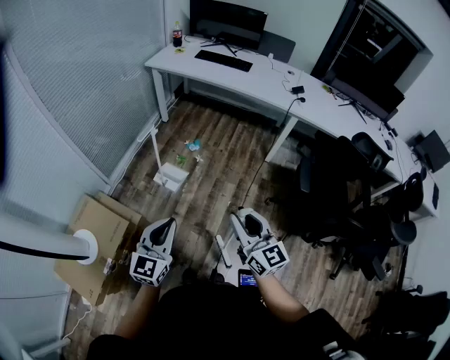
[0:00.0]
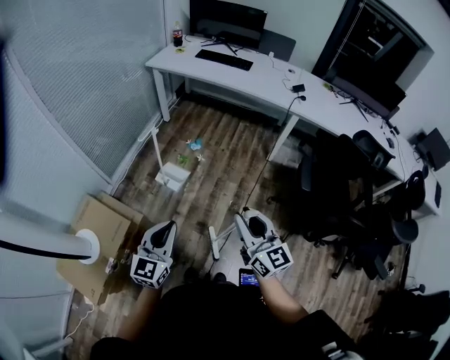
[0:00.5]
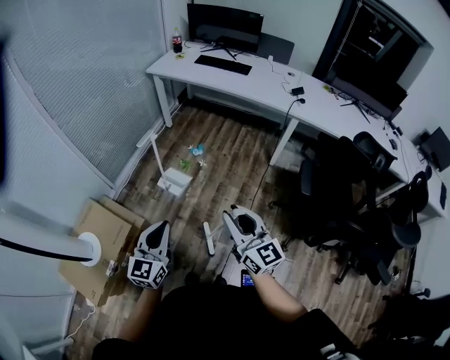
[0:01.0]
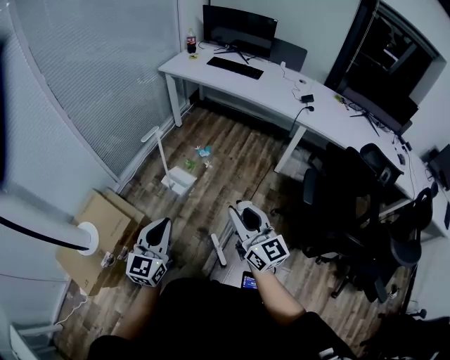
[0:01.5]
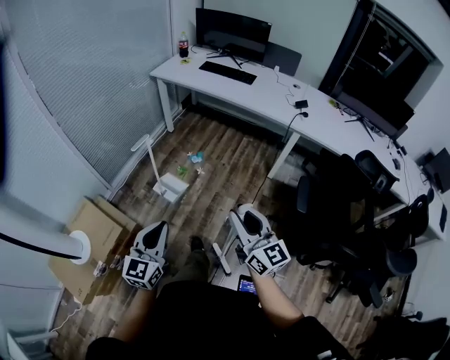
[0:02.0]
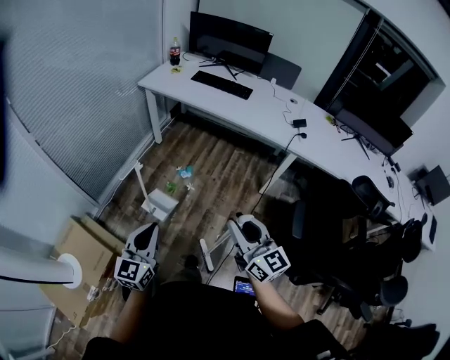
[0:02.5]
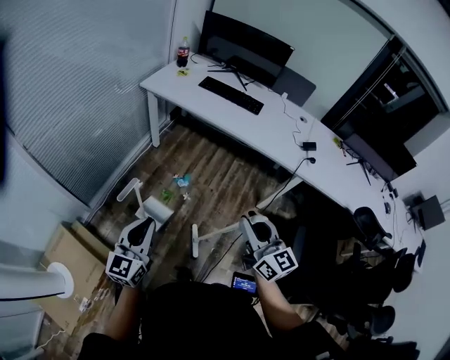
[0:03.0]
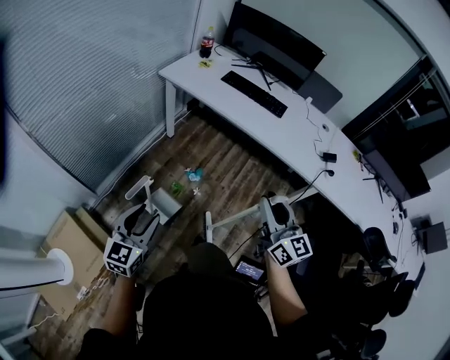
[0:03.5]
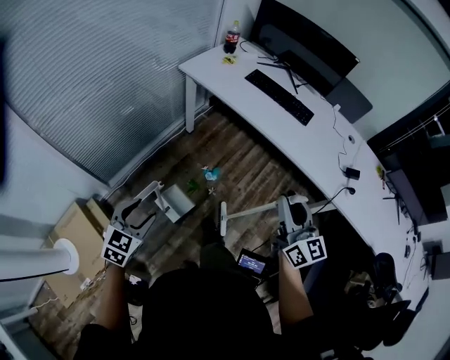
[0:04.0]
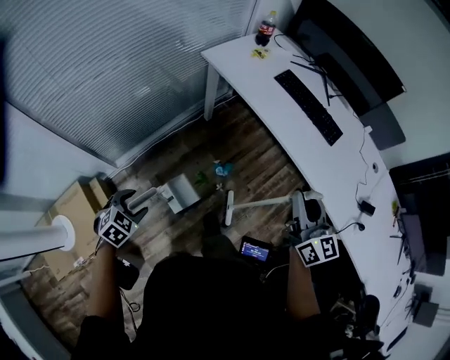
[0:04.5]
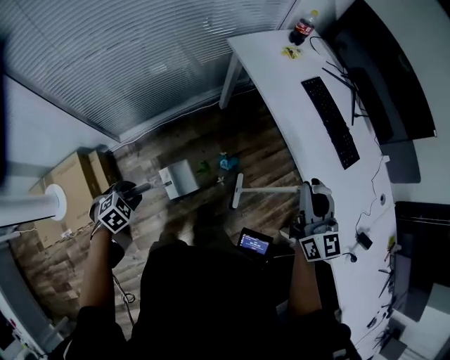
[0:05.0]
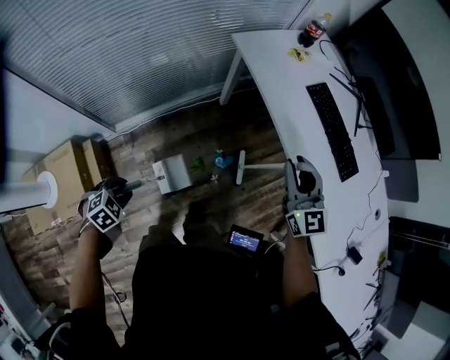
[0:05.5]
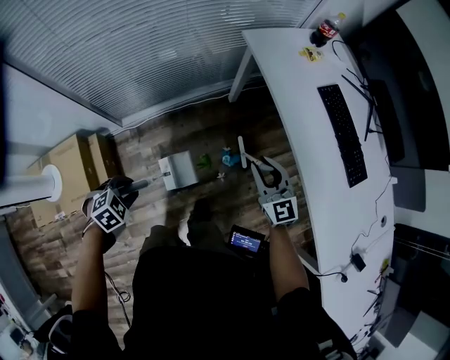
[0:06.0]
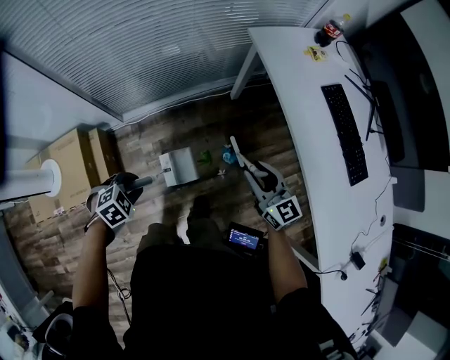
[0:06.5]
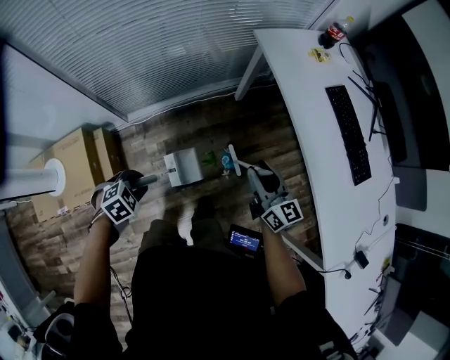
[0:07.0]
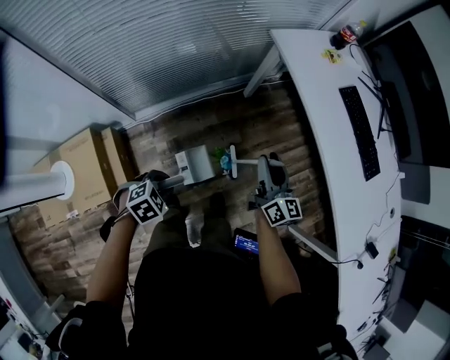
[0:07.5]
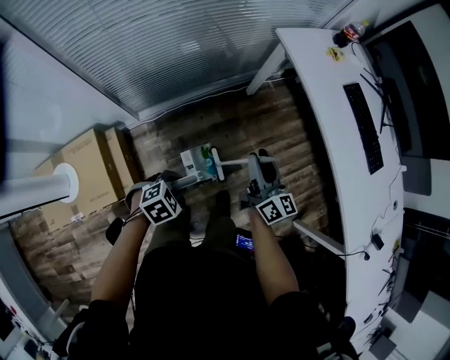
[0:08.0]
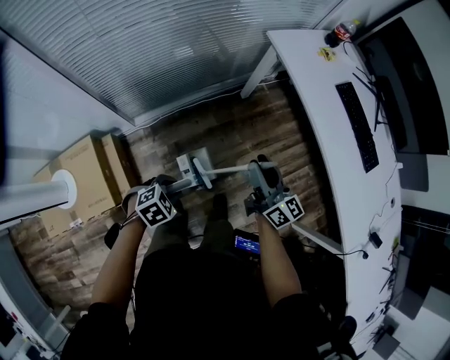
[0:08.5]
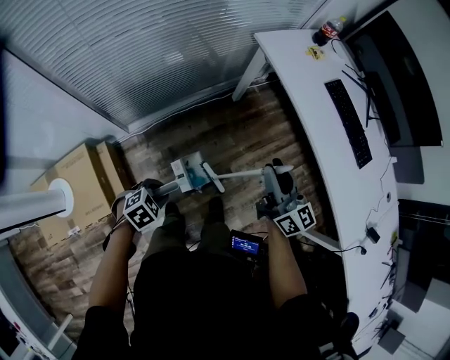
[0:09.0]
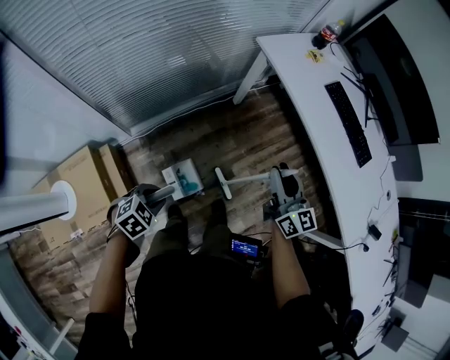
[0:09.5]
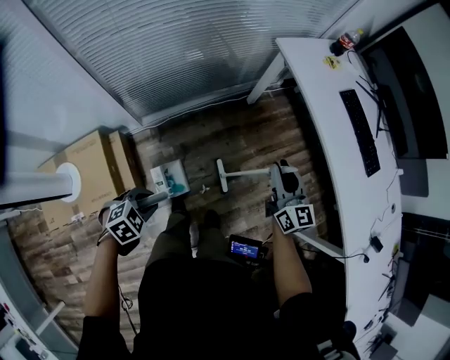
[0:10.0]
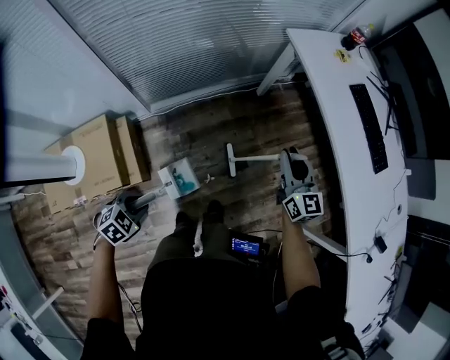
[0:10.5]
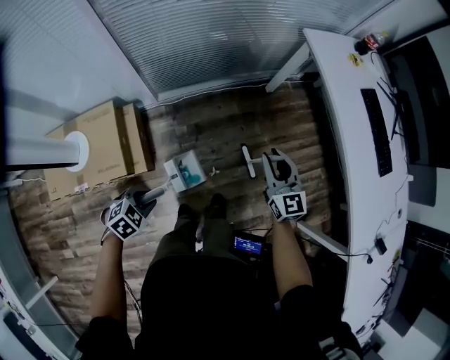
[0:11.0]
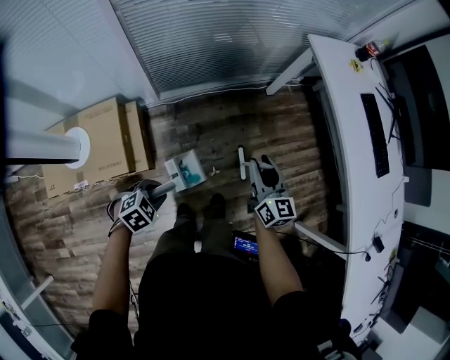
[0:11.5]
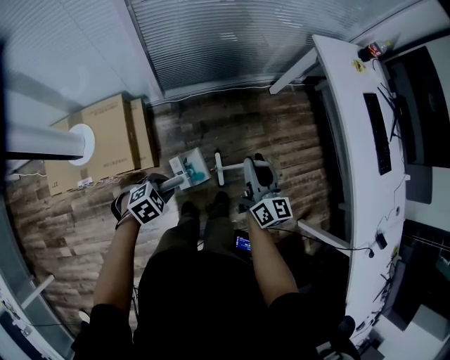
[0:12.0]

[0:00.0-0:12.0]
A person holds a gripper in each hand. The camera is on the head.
0:00.0 to 0:02.0: The right gripper heads to the right and forward, covering roughly 10 cm. The left gripper shifts some 5 cm to the right.
0:02.0 to 0:04.0: Both grippers are carried forward, about 40 cm. The left gripper turns by some 30 degrees, and opens up.
0:04.0 to 0:06.0: The left gripper travels downward and forward by about 20 cm, tilts its fingers roughly 40 degrees downward, and closes up. Meanwhile the right gripper is displaced forward and downward by approximately 40 cm, and turns by approximately 50 degrees.
0:06.0 to 0:08.0: The right gripper shifts approximately 15 cm to the left, and rolls clockwise, seen from behind, by about 40 degrees.
0:08.0 to 0:10.0: The right gripper goes roughly 5 cm to the right, and turns by some 20 degrees. Meanwhile the left gripper shifts some 10 cm backward and to the left.
0:10.0 to 0:12.0: The left gripper is displaced backward by some 10 cm; the right gripper travels to the left and backward by approximately 20 cm.

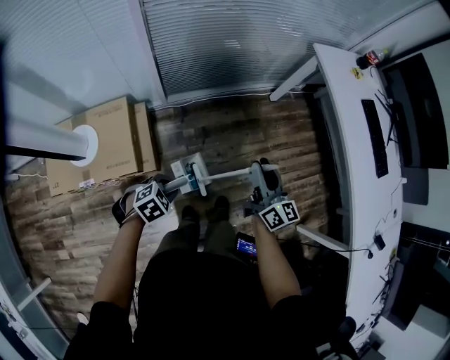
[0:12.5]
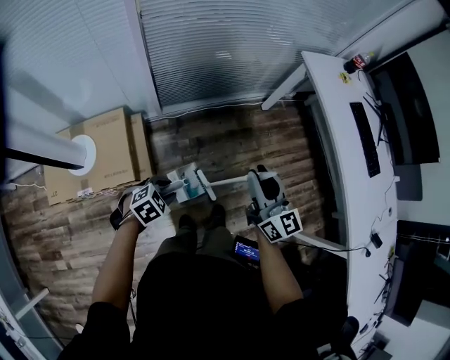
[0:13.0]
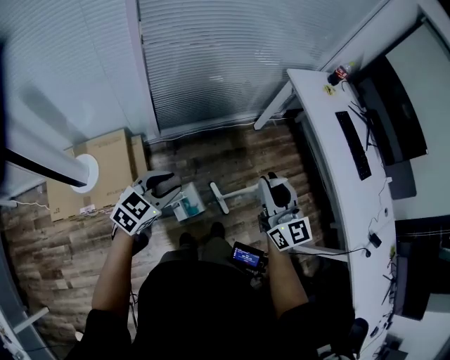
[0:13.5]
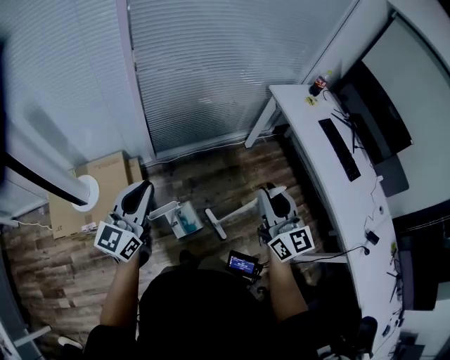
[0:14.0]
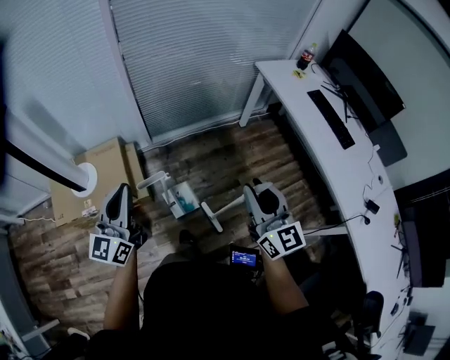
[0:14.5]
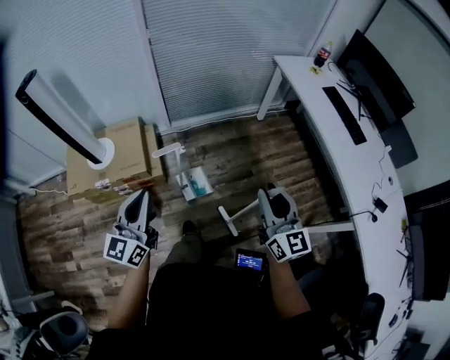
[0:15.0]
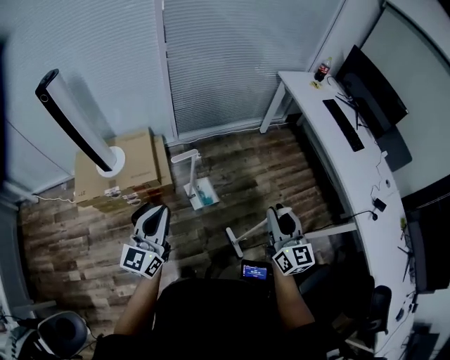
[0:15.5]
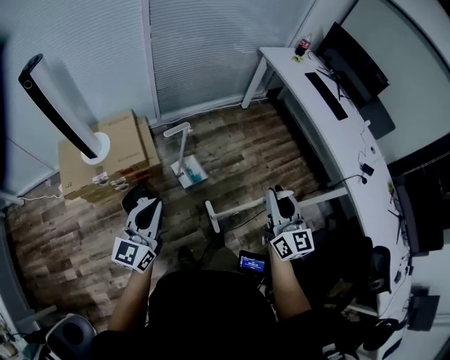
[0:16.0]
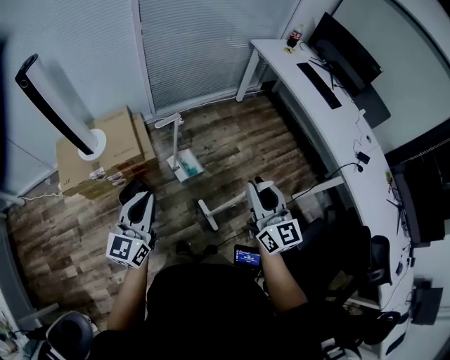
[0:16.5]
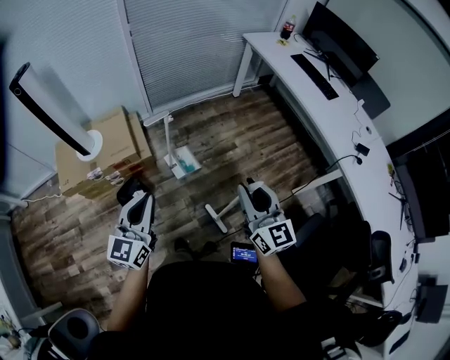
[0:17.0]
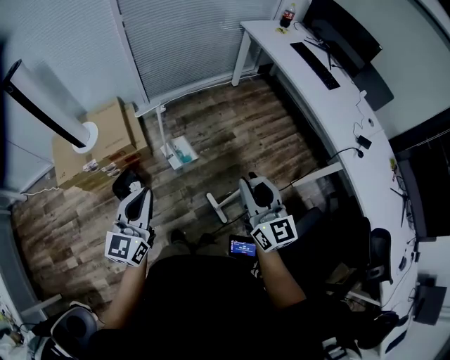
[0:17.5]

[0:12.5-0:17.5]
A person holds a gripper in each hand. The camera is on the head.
0:12.5 to 0:15.0: The right gripper heads backward, upward and to the right, covering about 35 cm, and turns by roughly 20 degrees. The left gripper is displaced upward and backward by roughly 40 cm, and points its fingers some 70 degrees further upward.
0:15.0 to 0:17.5: The two grippers go approximately 15 cm backward.

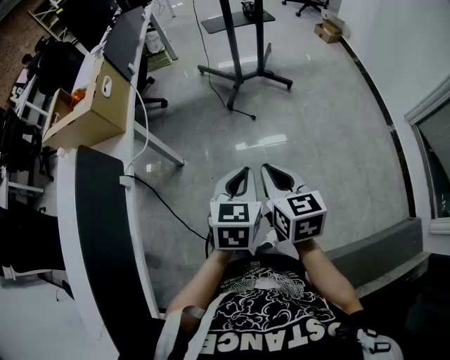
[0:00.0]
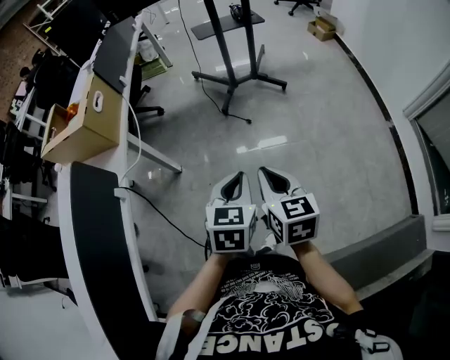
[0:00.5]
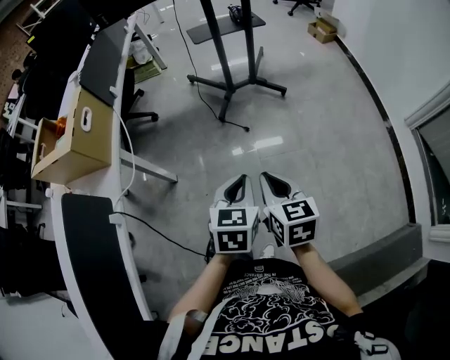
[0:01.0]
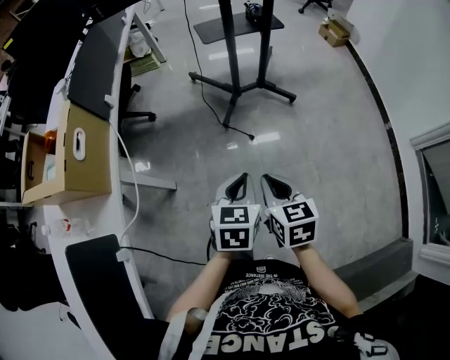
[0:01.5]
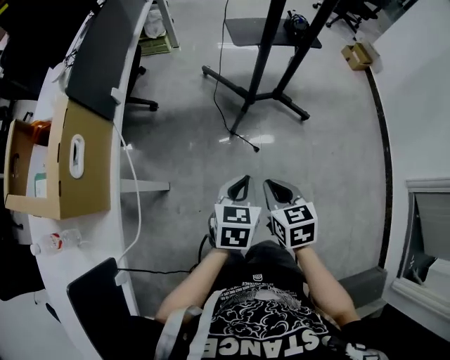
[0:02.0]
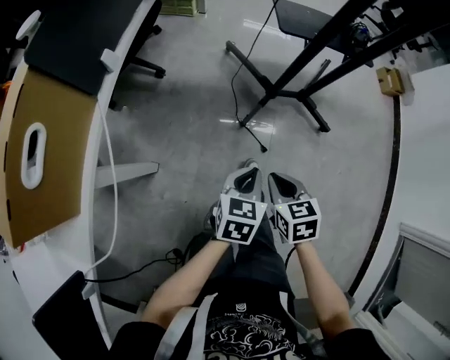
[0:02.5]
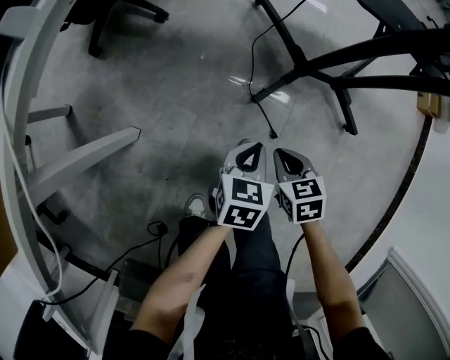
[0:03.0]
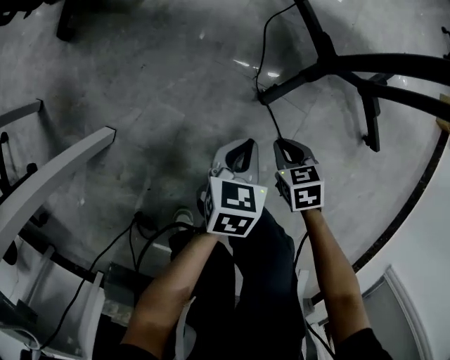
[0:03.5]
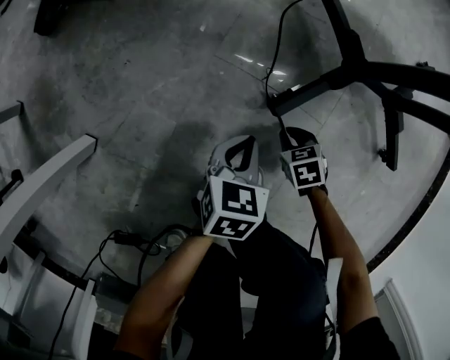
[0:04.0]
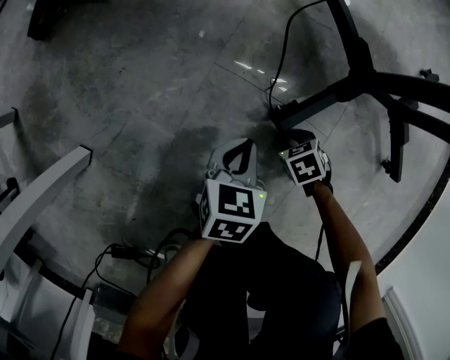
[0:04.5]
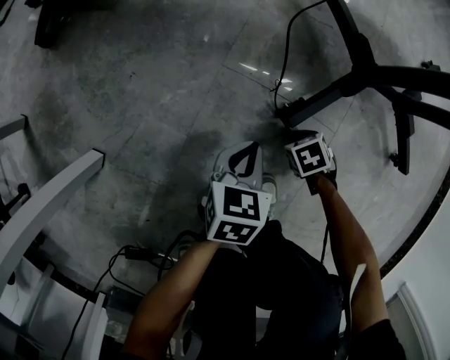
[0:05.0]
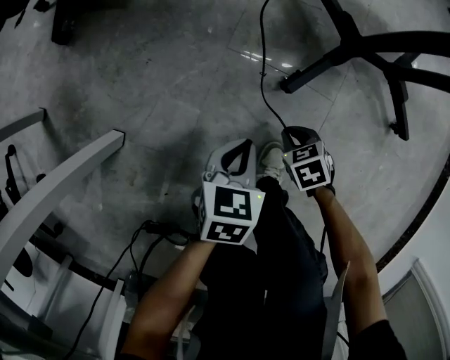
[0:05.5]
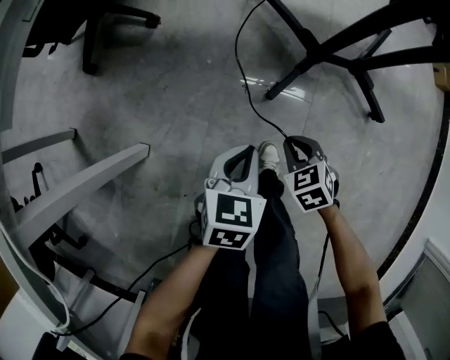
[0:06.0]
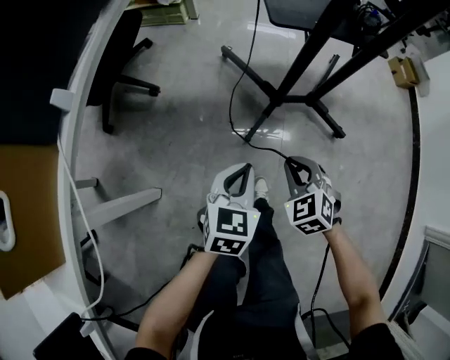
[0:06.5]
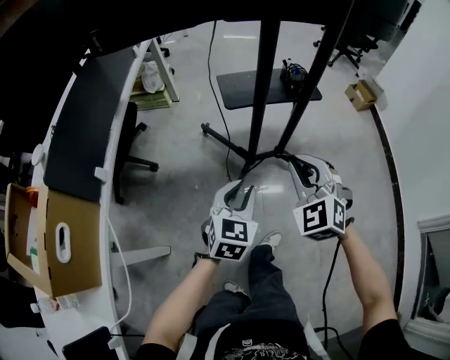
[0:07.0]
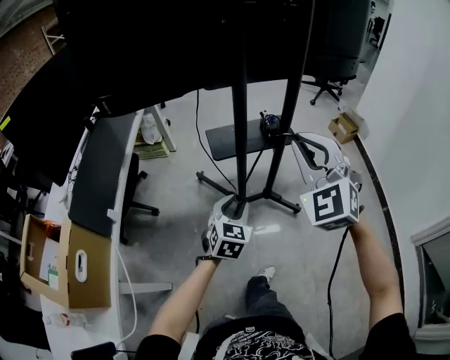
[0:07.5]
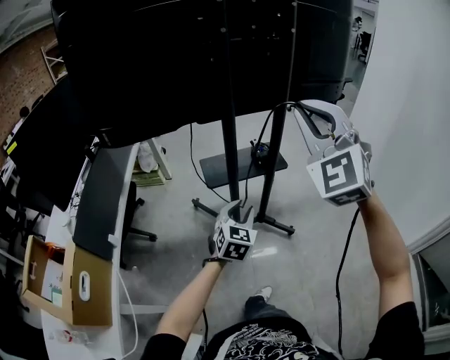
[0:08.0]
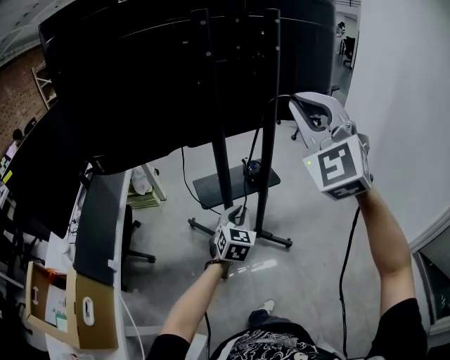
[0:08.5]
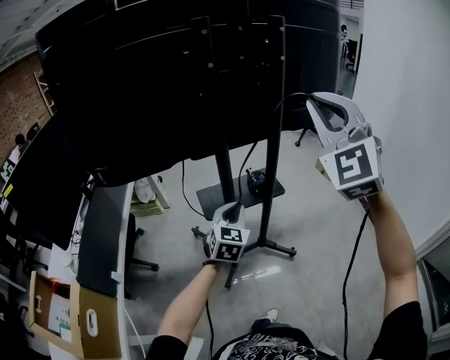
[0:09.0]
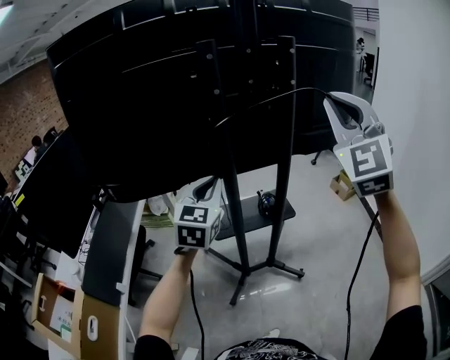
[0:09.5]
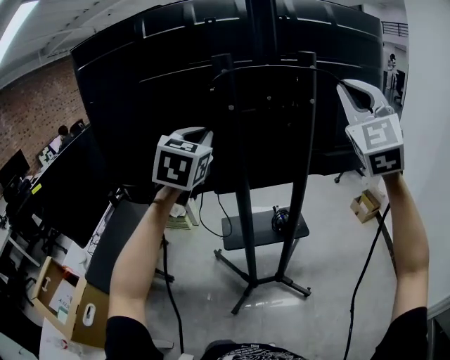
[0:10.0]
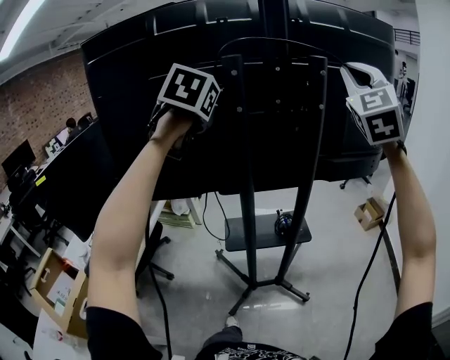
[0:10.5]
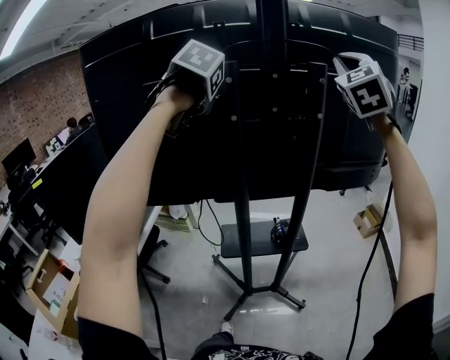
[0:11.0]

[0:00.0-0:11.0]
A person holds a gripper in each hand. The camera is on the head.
0:00.0 to 0:02.0: Both grippers move forward, approximately 35 cm. The right gripper rotates approximately 20 degrees.
0:02.0 to 0:03.5: The grippers both shift downward by some 50 cm. The left gripper rotates approximately 20 degrees, while the right gripper changes its angle by approximately 40 degrees.
0:03.5 to 0:05.5: The right gripper heads downward, covering some 10 cm; the left gripper goes downward and returns, approximately 15 cm each way.
0:05.5 to 0:07.5: The right gripper moves upward, some 1 m, and tilts its fingers roughly 60 degrees upward, while the left gripper shifts about 60 cm upward, swivels about 50 degrees, and opens its fingers.
0:07.5 to 0:09.0: The right gripper is displaced upward by roughly 25 cm, and changes its angle by roughly 20 degrees. Meanwhile the left gripper travels forward and upward by about 20 cm, and closes up.
0:09.0 to 0:11.0: The left gripper is displaced upward and forward by some 40 cm, and turns by approximately 40 degrees; the right gripper is displaced forward and upward by some 30 cm.
